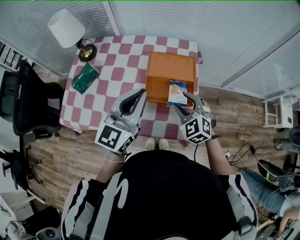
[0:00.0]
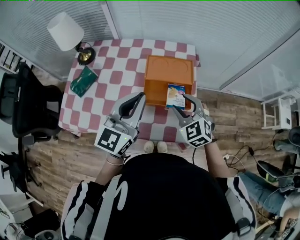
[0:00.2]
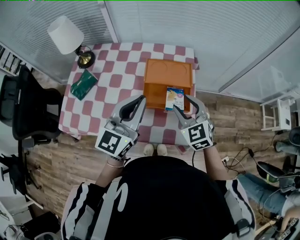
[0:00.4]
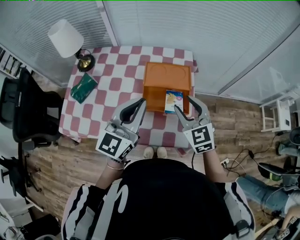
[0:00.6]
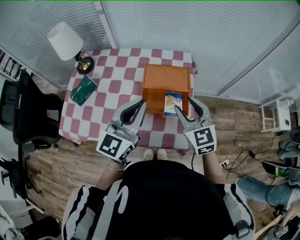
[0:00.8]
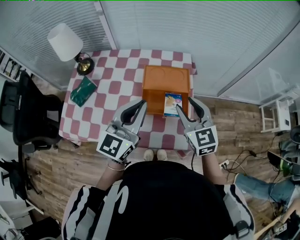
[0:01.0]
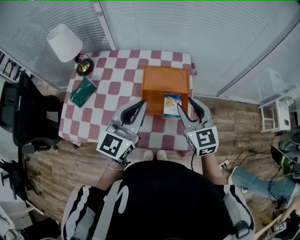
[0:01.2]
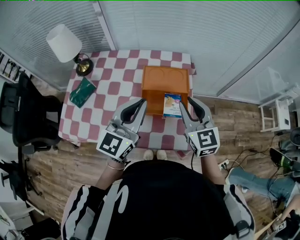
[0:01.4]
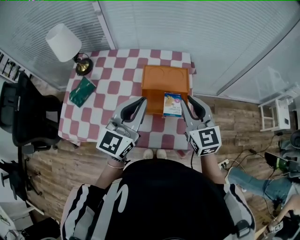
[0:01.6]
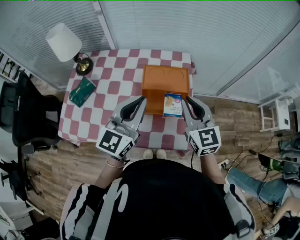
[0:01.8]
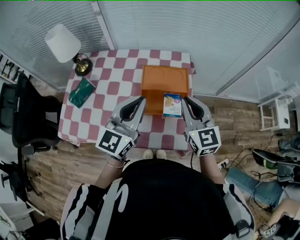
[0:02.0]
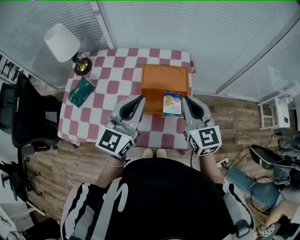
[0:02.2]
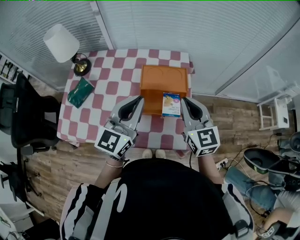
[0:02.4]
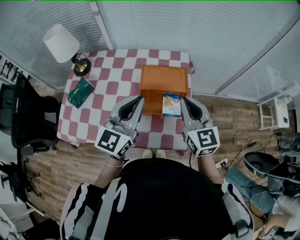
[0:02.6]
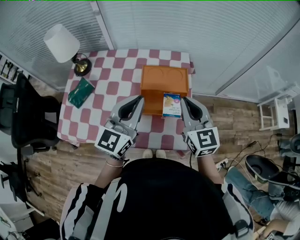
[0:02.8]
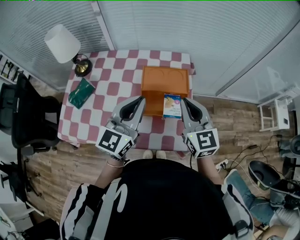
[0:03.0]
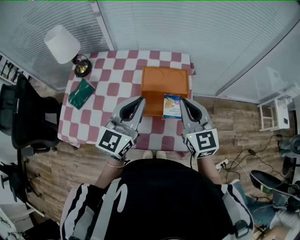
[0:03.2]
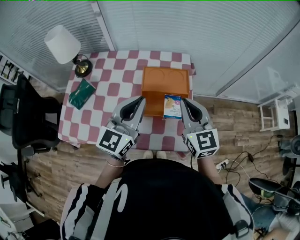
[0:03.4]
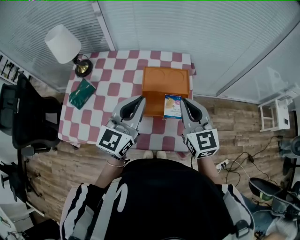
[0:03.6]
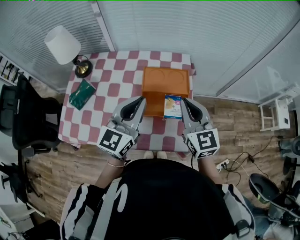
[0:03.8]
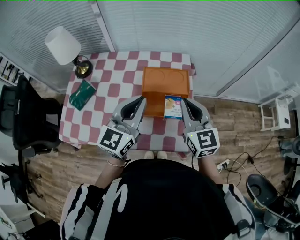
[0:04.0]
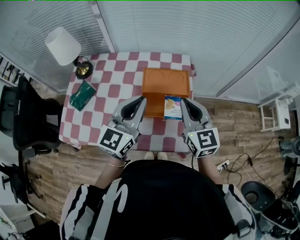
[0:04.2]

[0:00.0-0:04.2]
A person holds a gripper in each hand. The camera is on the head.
0:00.0 to 0:01.4: The right gripper travels upward by some 10 cm, turns by approximately 40 degrees, and closes.
0:01.4 to 0:02.8: The right gripper closes.
0:02.8 to 0:04.2: The two grippers keep their place.

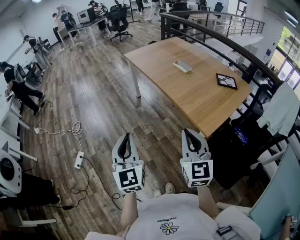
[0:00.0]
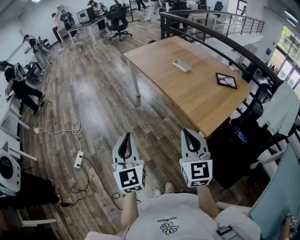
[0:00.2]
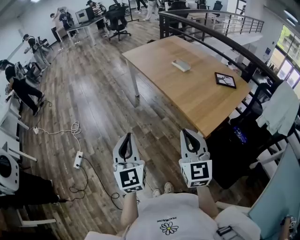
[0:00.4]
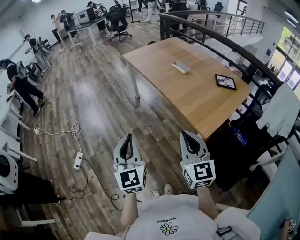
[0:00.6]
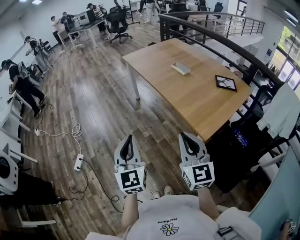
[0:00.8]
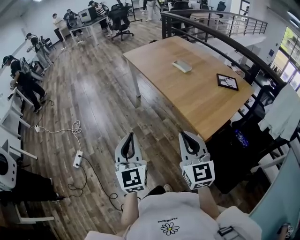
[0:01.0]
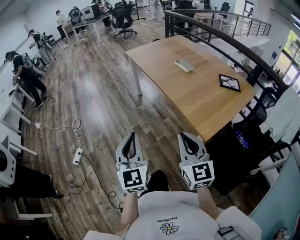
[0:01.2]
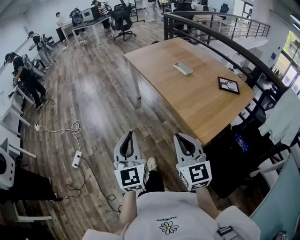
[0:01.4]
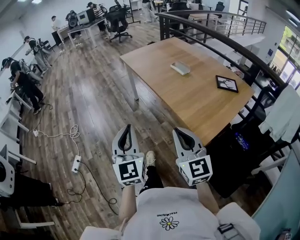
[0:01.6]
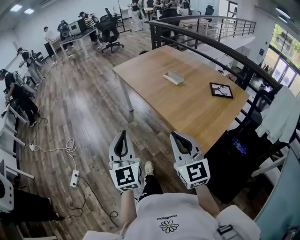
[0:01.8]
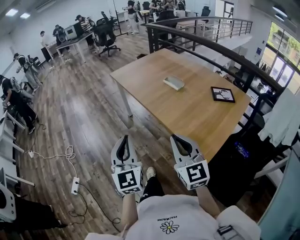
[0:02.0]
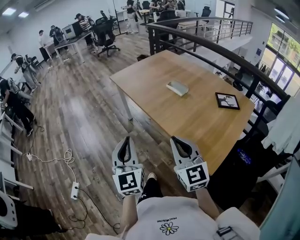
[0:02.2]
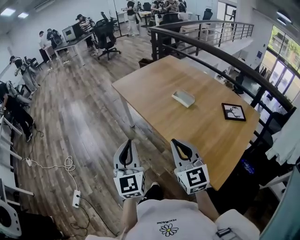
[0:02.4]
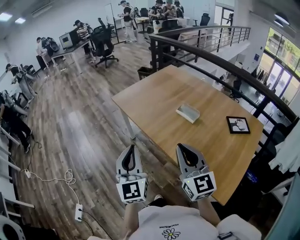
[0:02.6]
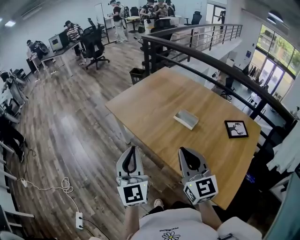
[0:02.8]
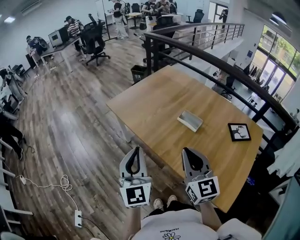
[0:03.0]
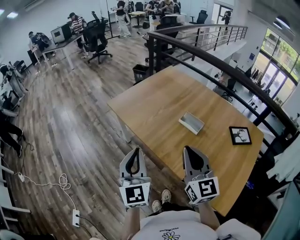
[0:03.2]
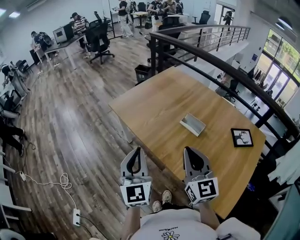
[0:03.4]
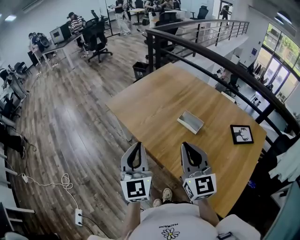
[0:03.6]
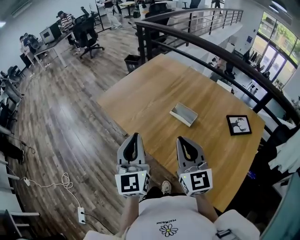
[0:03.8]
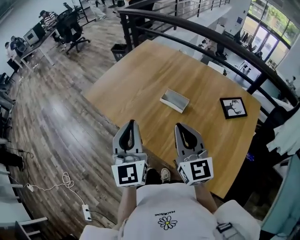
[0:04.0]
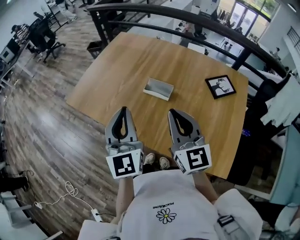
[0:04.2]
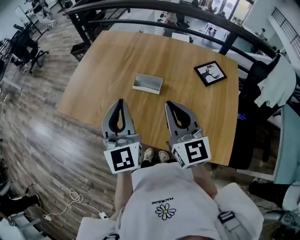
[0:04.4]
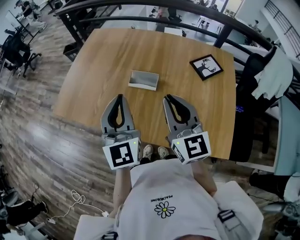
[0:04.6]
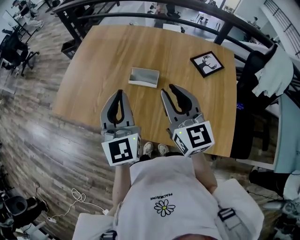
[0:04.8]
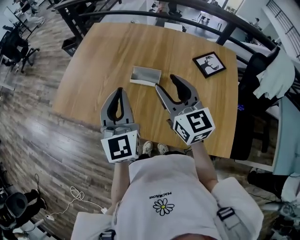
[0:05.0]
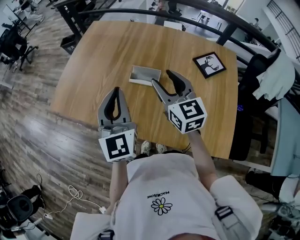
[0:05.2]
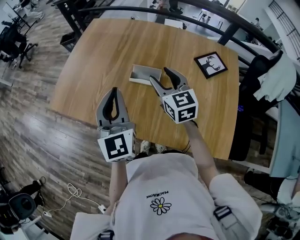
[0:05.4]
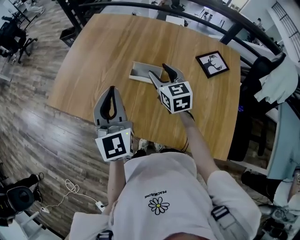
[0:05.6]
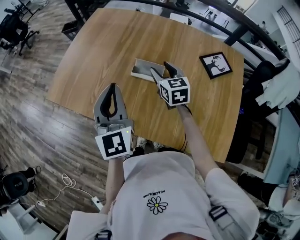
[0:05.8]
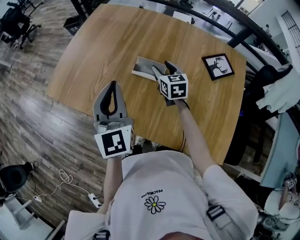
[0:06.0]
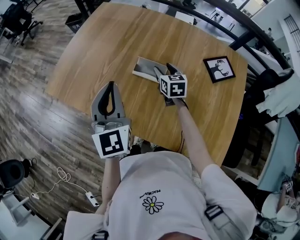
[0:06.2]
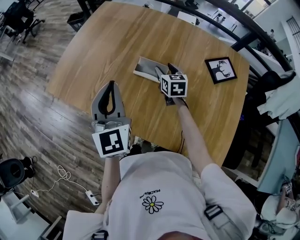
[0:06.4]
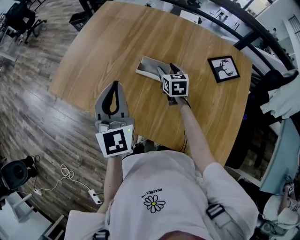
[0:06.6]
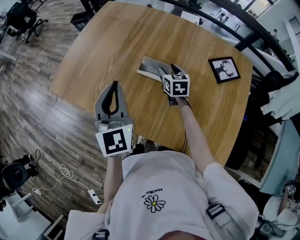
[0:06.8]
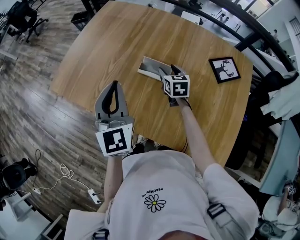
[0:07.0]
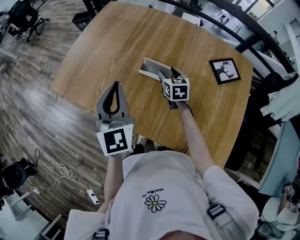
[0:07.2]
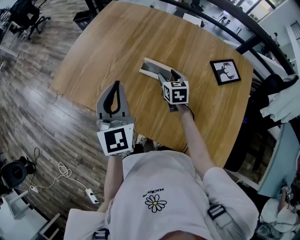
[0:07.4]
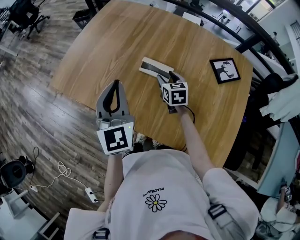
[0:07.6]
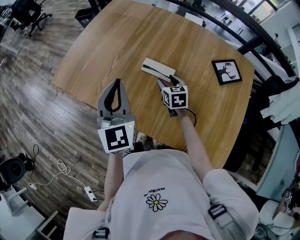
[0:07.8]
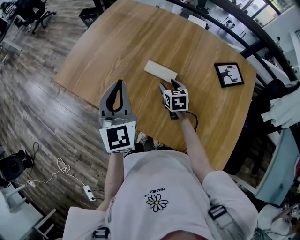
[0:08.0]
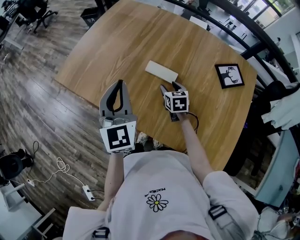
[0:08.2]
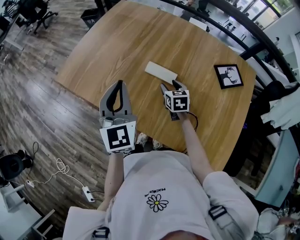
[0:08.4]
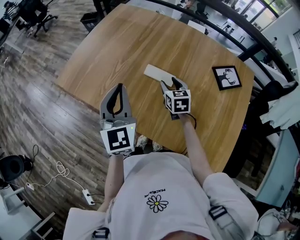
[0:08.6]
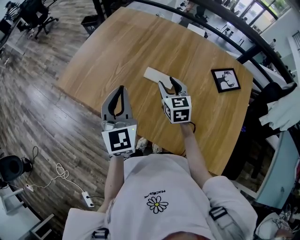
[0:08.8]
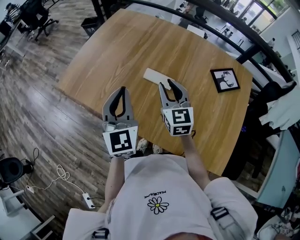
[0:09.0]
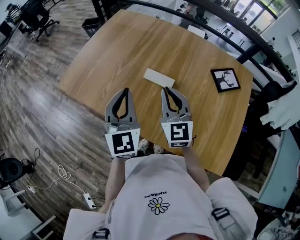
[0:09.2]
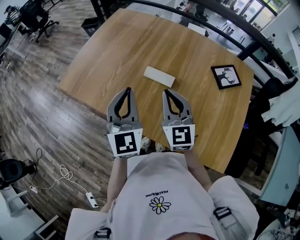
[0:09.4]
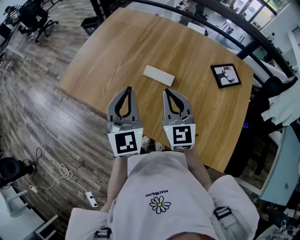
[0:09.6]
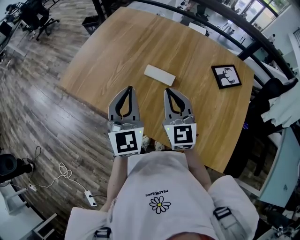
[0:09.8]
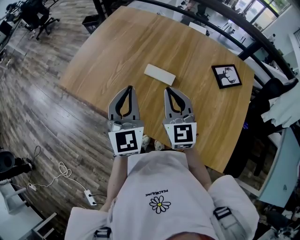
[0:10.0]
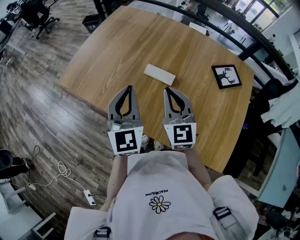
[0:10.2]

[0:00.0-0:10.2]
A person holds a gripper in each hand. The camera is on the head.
0:00.0 to 0:01.4: The left gripper shifts some 5 cm to the right.
0:01.4 to 0:03.0: The pair of grippers is taken forward, about 40 cm.
0:03.0 to 0:04.4: The left gripper travels forward and to the right by approximately 20 cm, and rotates roughly 20 degrees. Meanwhile the right gripper shifts approximately 15 cm to the right and forward, and changes its angle by about 20 degrees.
0:04.4 to 0:05.8: The right gripper travels forward and downward by about 25 cm, turns by about 30 degrees, and opens. Meanwhile the left gripper travels forward and downward by some 10 cm.
0:05.8 to 0:07.2: The right gripper travels downward by about 10 cm.
0:07.2 to 0:08.8: The right gripper travels upward by some 5 cm.
0:08.8 to 0:10.2: The right gripper heads upward and backward, covering roughly 15 cm, rotates roughly 20 degrees, and closes up.

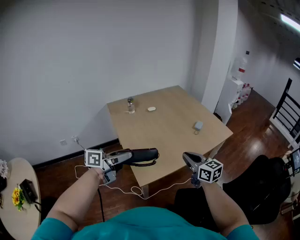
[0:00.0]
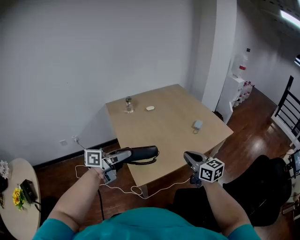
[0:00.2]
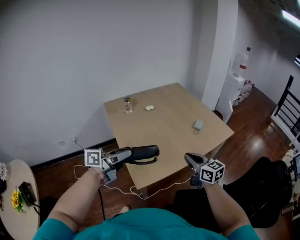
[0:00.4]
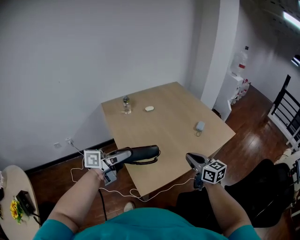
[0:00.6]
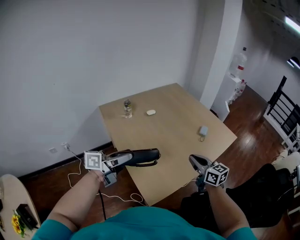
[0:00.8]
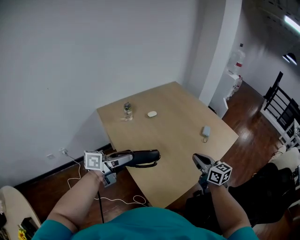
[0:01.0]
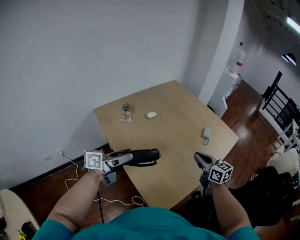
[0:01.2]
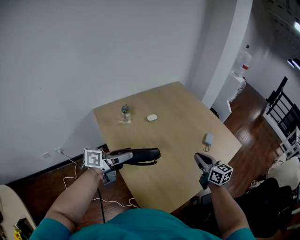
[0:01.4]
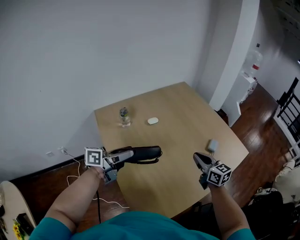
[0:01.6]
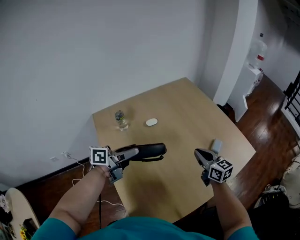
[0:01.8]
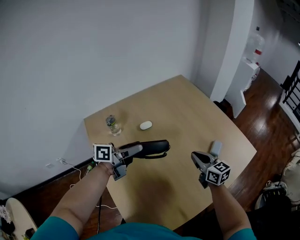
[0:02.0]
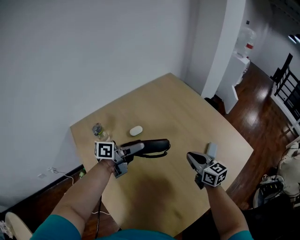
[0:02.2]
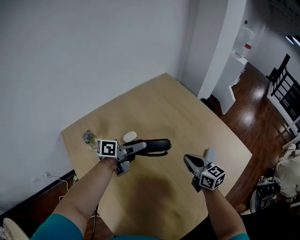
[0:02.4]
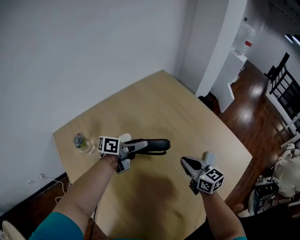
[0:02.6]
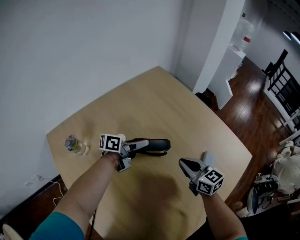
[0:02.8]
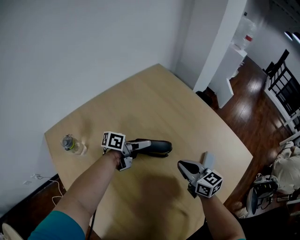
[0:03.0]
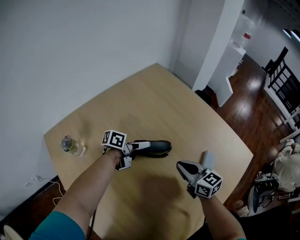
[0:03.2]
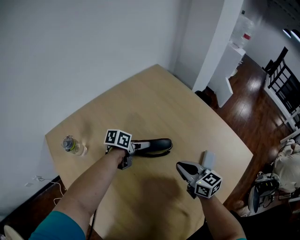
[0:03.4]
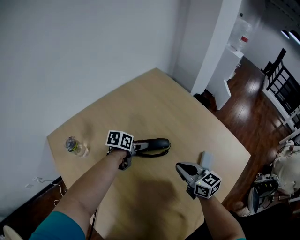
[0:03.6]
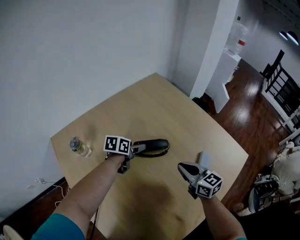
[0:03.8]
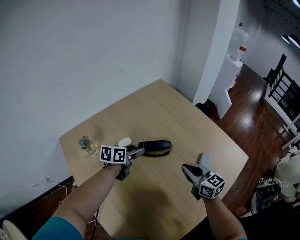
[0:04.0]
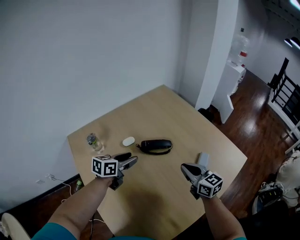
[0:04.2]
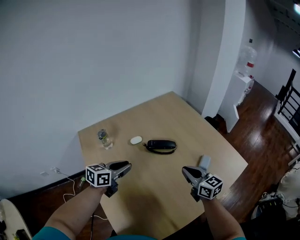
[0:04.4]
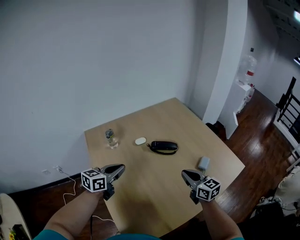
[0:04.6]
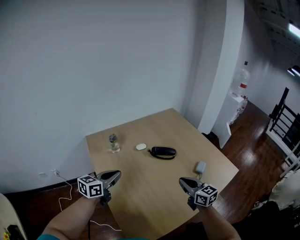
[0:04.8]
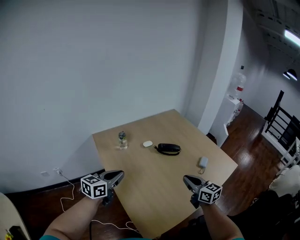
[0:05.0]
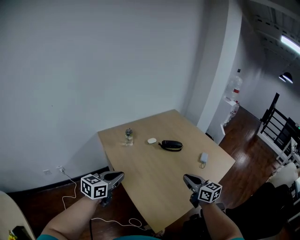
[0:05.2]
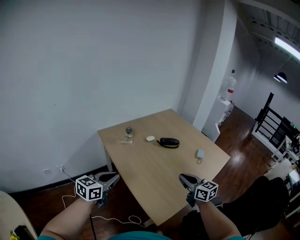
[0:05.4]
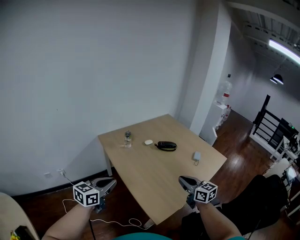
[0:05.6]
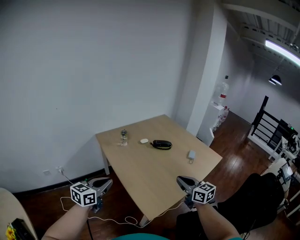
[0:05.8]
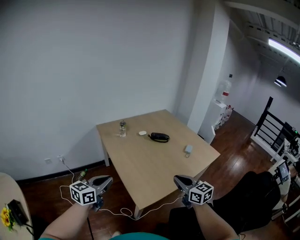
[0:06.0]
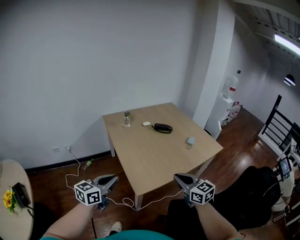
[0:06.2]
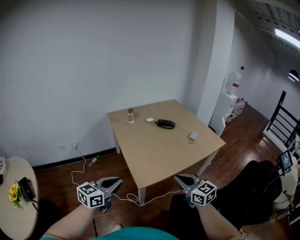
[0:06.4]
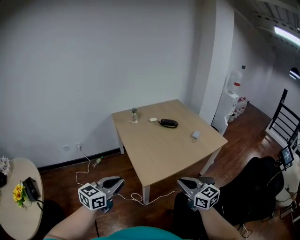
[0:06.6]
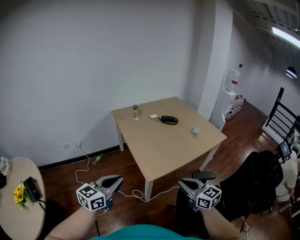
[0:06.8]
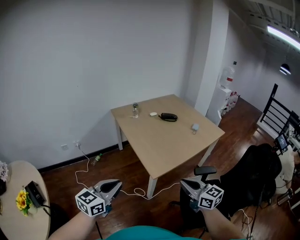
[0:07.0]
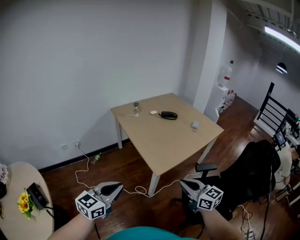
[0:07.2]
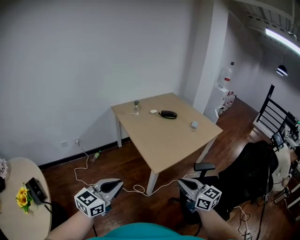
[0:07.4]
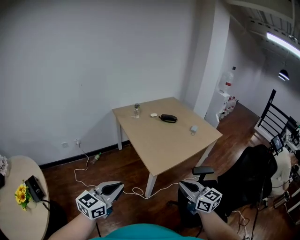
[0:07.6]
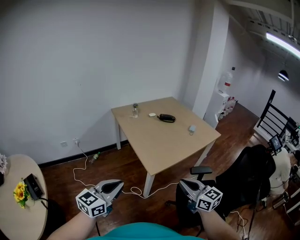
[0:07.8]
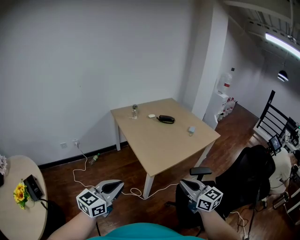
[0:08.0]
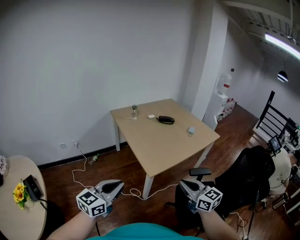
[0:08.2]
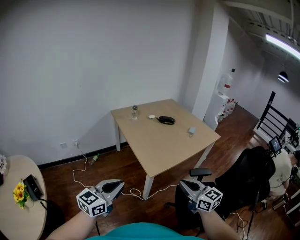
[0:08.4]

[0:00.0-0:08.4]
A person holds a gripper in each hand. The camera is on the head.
0:00.0 to 0:01.4: The right gripper heads forward, covering about 20 cm. Meanwhile the left gripper is displaced forward and to the left by approximately 25 cm.
0:01.4 to 0:02.8: The right gripper moves forward and downward, about 25 cm, while the left gripper is displaced forward and downward by about 50 cm.
0:02.8 to 0:04.2: The left gripper goes some 15 cm backward and upward, and swivels approximately 40 degrees; the right gripper goes about 10 cm backward and upward.
0:04.2 to 0:05.6: Both grippers travel together backward and to the left, approximately 40 cm. The left gripper turns by approximately 20 degrees, and closes.
0:05.6 to 0:07.0: The two grippers go some 35 cm backward.
0:07.0 to 0:08.4: The left gripper moves roughly 5 cm.

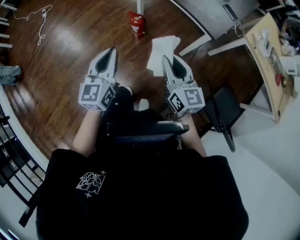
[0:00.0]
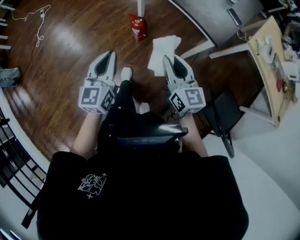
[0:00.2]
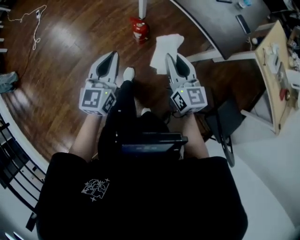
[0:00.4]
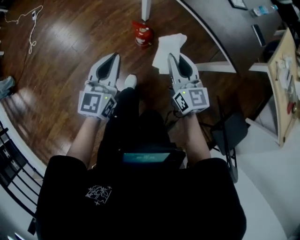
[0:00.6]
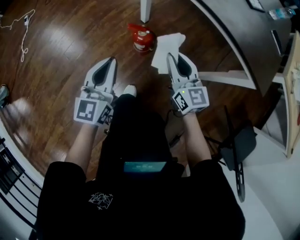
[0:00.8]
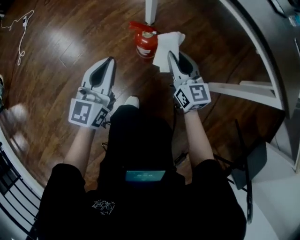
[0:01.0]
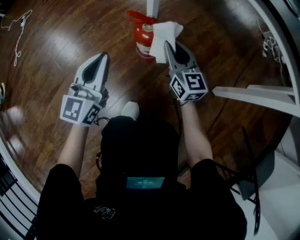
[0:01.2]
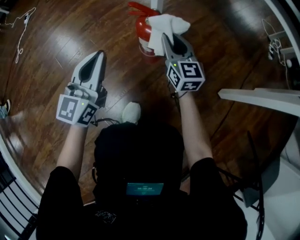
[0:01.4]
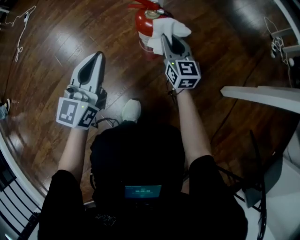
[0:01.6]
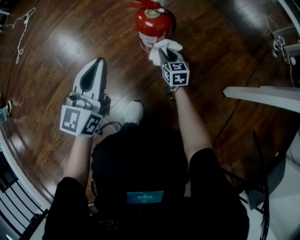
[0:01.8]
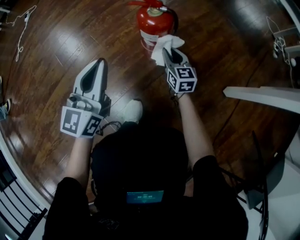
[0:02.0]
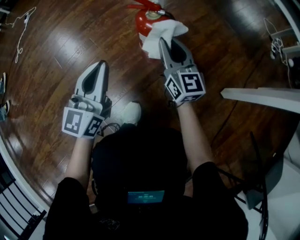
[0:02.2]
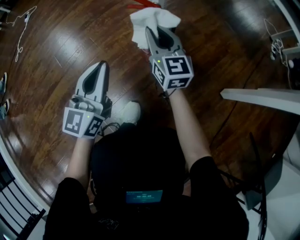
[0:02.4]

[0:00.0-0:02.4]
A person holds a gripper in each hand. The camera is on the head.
0:00.0 to 0:01.2: Both grippers travel together downward and forward, approximately 70 cm.
0:01.2 to 0:02.4: The right gripper moves to the left, some 5 cm, and moves approximately 25 cm downward and comes back. The left gripper heads downward and backward, covering some 10 cm.
